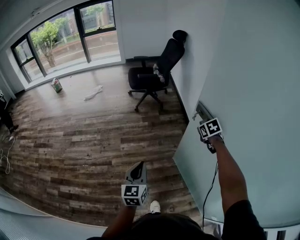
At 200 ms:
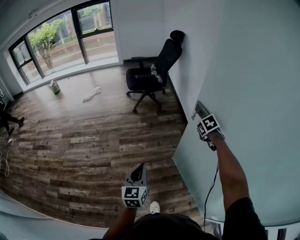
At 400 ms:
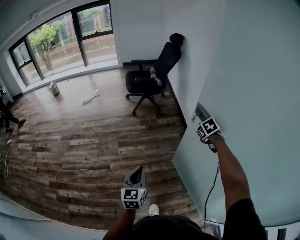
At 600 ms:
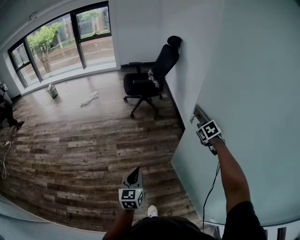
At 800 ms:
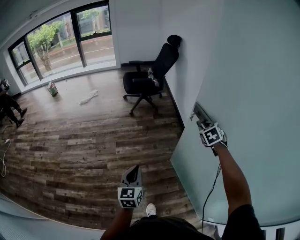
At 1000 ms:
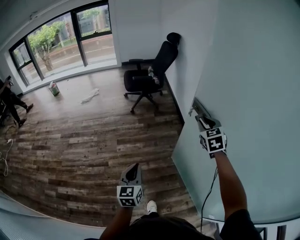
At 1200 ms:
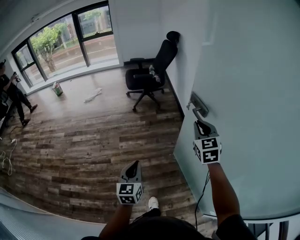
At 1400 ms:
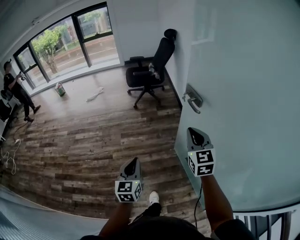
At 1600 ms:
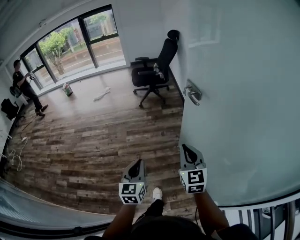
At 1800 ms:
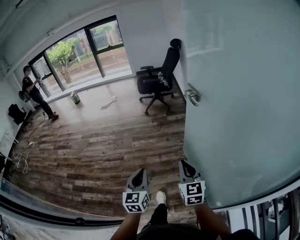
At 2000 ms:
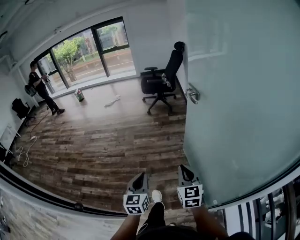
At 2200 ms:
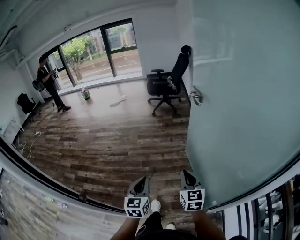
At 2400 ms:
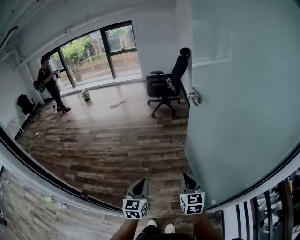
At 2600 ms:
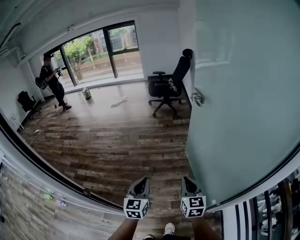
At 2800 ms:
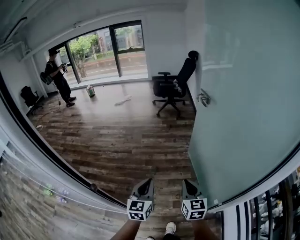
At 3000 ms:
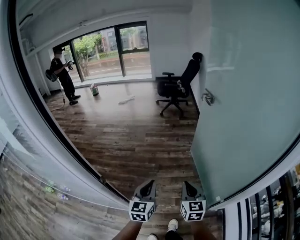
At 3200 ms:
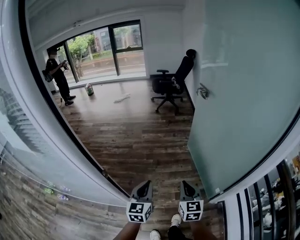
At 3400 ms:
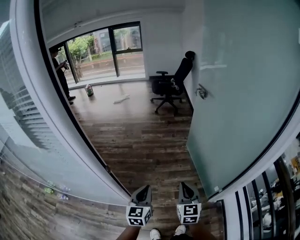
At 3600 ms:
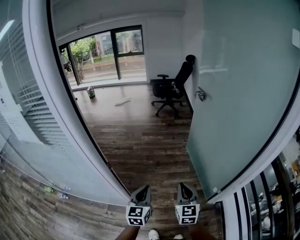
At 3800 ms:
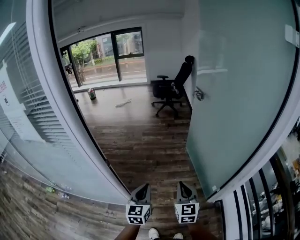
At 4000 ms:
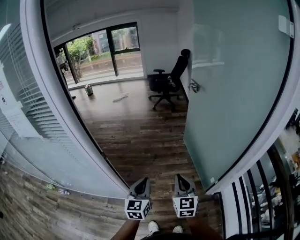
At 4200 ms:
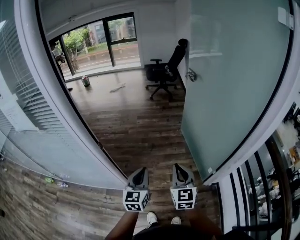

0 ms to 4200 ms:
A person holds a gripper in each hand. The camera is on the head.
0 ms to 1400 ms: The right gripper is displaced backward and upward by some 30 cm, angles its fingers upward, by roughly 50 degrees, and opens, then closes once more, while the left gripper shifts roughly 15 cm backward and to the right.
1400 ms to 2800 ms: Both grippers are carried backward, approximately 40 cm.
2800 ms to 4200 ms: The right gripper is displaced backward and upward by approximately 25 cm; the left gripper shifts about 25 cm backward.

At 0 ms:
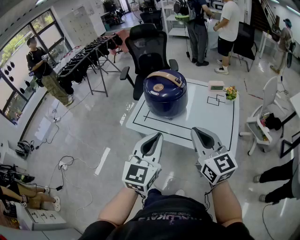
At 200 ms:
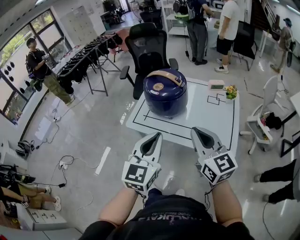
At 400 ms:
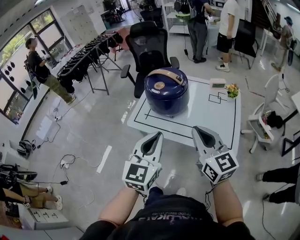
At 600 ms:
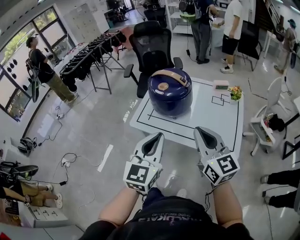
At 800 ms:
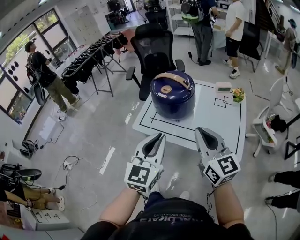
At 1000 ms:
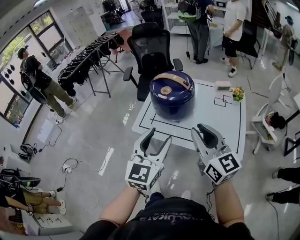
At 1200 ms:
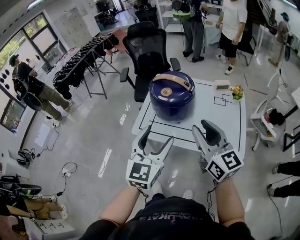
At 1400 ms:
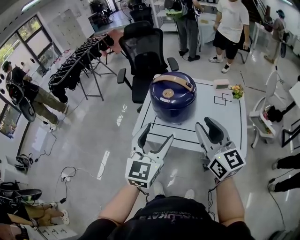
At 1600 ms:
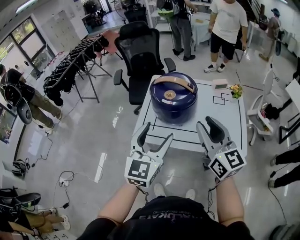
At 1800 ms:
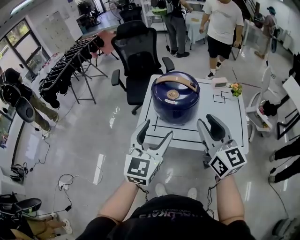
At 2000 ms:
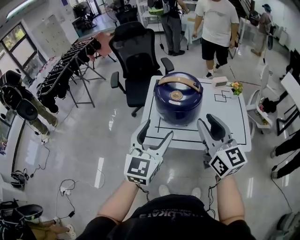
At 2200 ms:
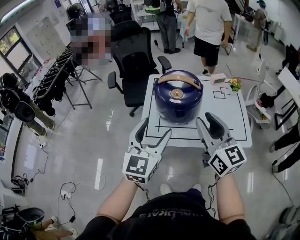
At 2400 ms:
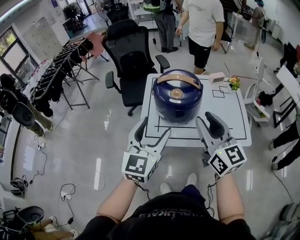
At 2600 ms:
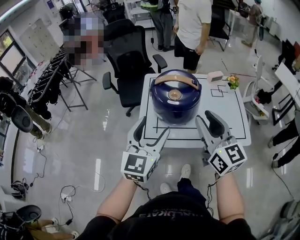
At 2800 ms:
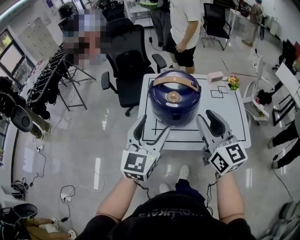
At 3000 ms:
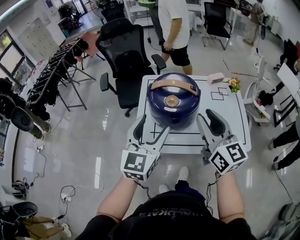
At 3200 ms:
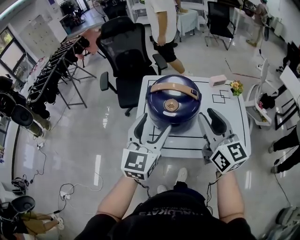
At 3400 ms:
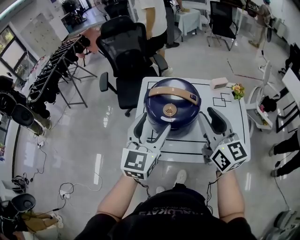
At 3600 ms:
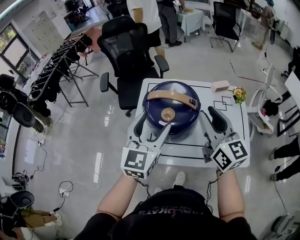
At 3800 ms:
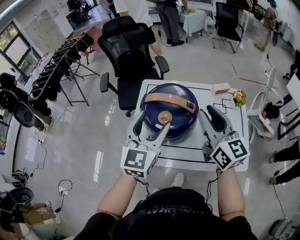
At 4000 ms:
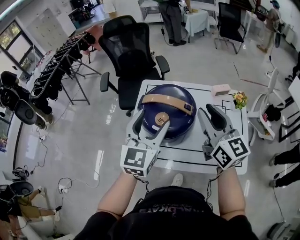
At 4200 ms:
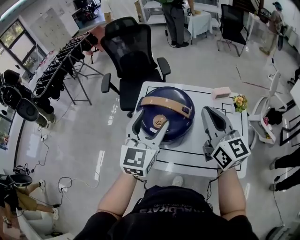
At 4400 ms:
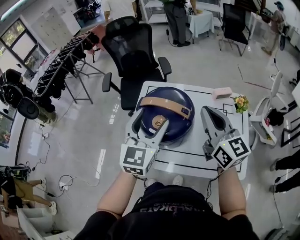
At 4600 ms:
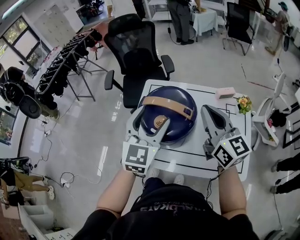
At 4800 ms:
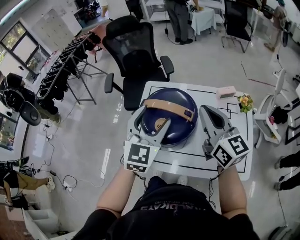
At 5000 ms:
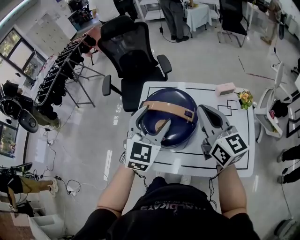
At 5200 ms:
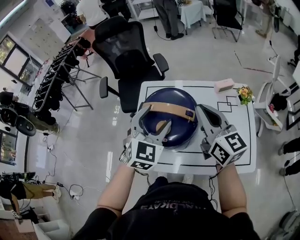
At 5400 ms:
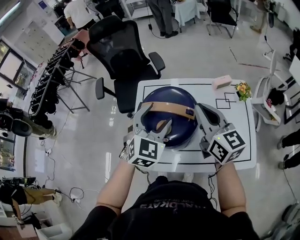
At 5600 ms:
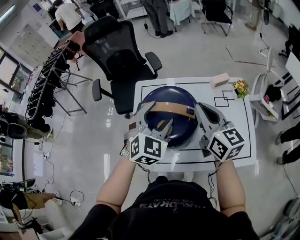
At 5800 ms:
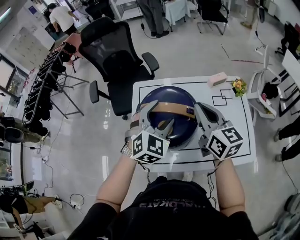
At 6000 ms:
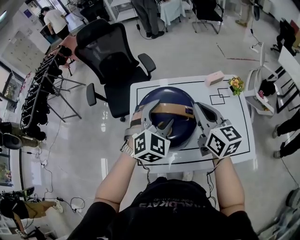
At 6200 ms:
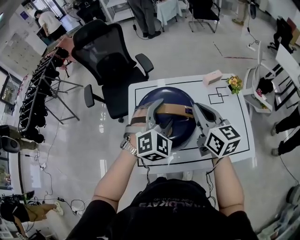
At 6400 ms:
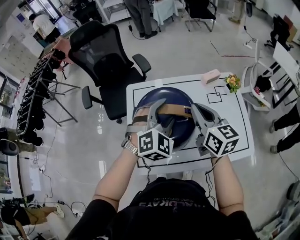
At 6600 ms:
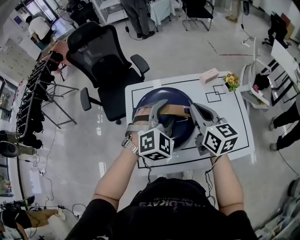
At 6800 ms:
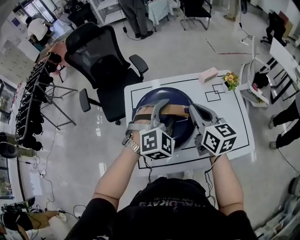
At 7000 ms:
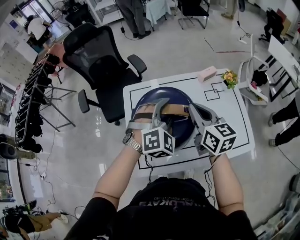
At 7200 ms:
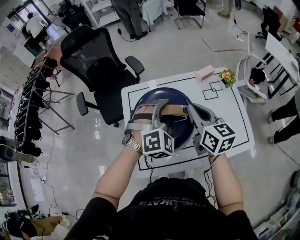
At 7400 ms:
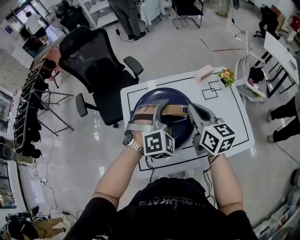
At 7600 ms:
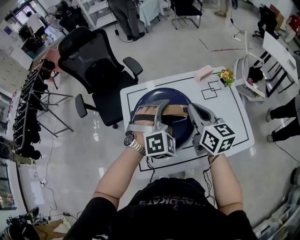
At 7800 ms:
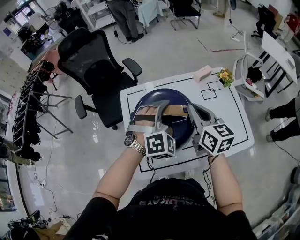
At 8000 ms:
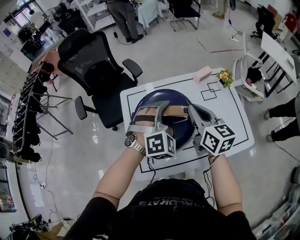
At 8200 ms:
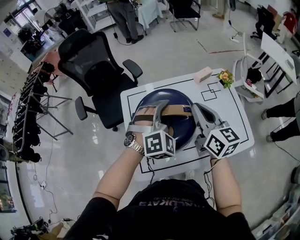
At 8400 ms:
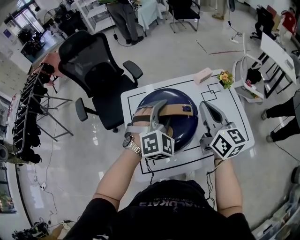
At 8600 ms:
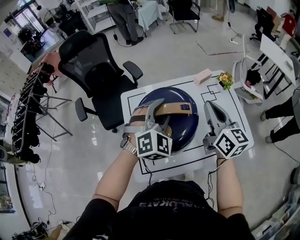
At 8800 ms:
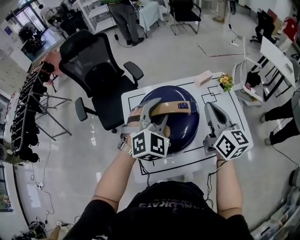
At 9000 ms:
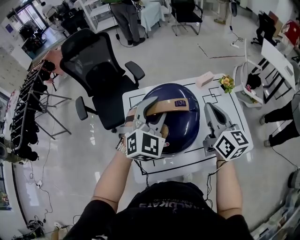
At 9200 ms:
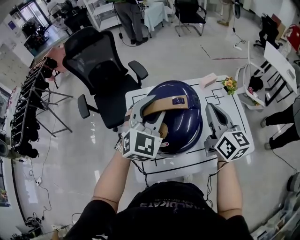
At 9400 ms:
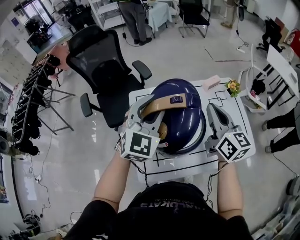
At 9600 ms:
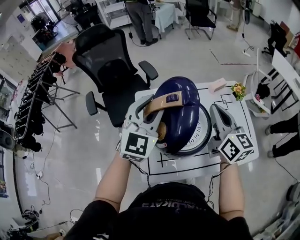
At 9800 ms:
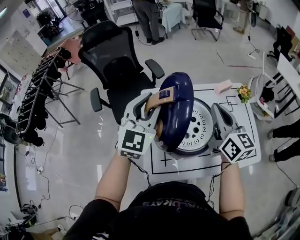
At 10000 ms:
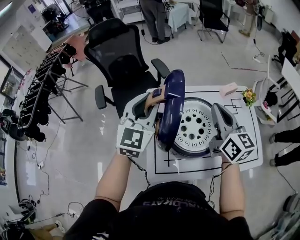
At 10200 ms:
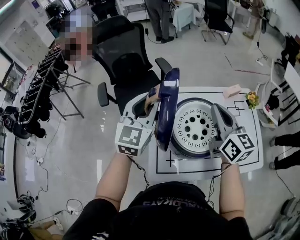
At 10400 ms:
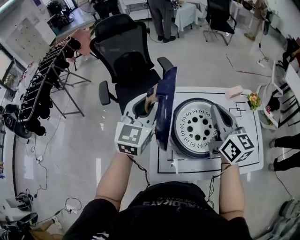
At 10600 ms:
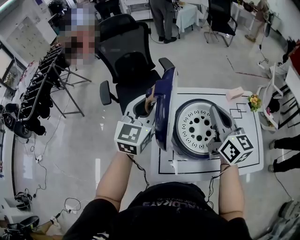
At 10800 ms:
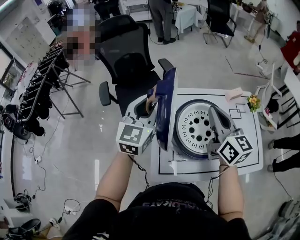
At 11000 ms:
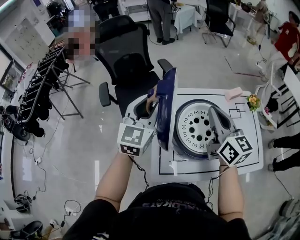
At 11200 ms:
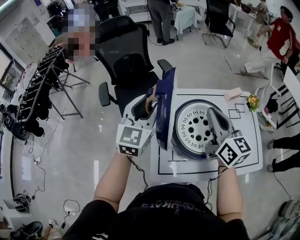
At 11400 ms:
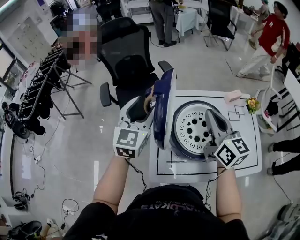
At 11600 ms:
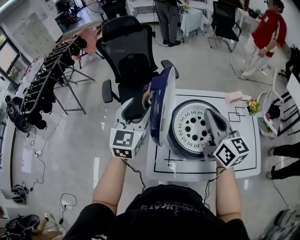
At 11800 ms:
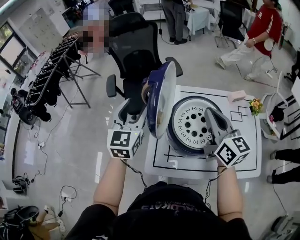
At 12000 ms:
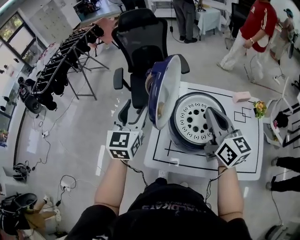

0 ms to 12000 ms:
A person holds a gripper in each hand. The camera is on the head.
0 ms to 1600 ms: The two grippers go some 15 cm forward and to the left. The right gripper opens up. The left gripper opens its fingers.
1600 ms to 3000 ms: The right gripper shifts some 10 cm forward; the left gripper heads forward and to the left, covering approximately 10 cm.
3000 ms to 4400 ms: The two grippers go approximately 15 cm forward and to the right. The right gripper closes its fingers.
4400 ms to 6000 ms: The right gripper is displaced downward by some 5 cm, while the left gripper shifts roughly 10 cm downward and forward, and rotates about 50 degrees.
6000 ms to 7600 ms: The left gripper turns by about 20 degrees, and closes up.
7600 ms to 9000 ms: The left gripper shifts roughly 10 cm upward and to the left, and rotates roughly 30 degrees; the right gripper ends up about 5 cm from where it was.
9000 ms to 10400 ms: Both grippers move to the left, about 15 cm. The left gripper turns by some 40 degrees.
10400 ms to 12000 ms: The left gripper moves backward and to the left, roughly 10 cm, rotates approximately 20 degrees, and opens its fingers; the right gripper goes roughly 5 cm backward.

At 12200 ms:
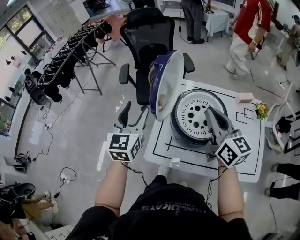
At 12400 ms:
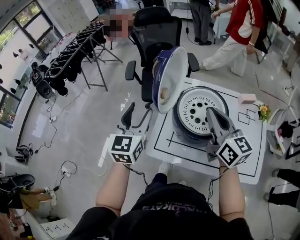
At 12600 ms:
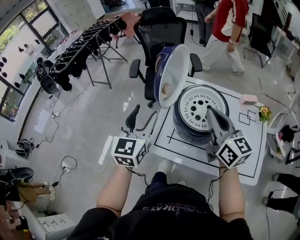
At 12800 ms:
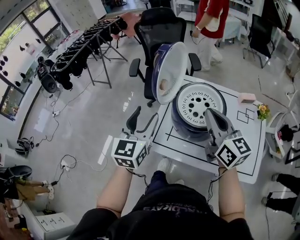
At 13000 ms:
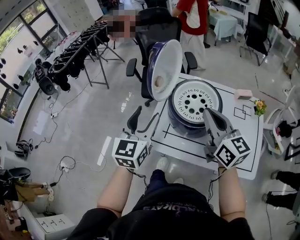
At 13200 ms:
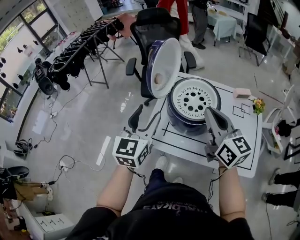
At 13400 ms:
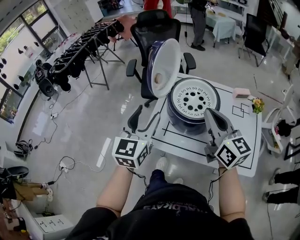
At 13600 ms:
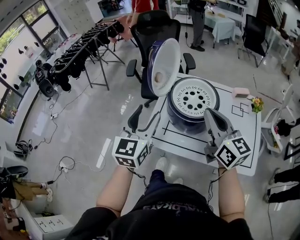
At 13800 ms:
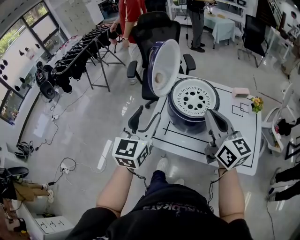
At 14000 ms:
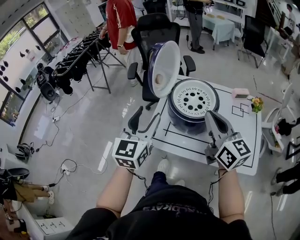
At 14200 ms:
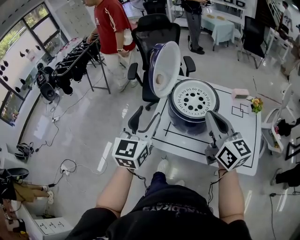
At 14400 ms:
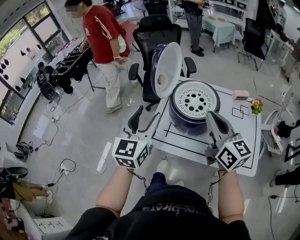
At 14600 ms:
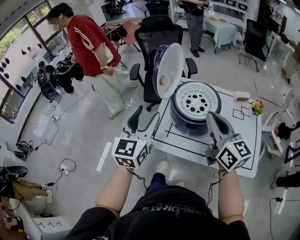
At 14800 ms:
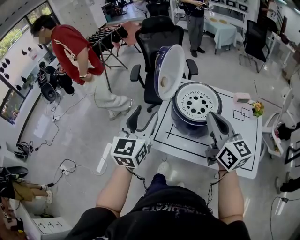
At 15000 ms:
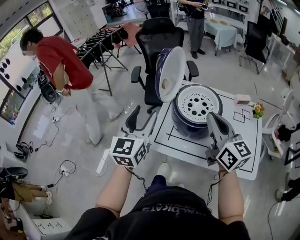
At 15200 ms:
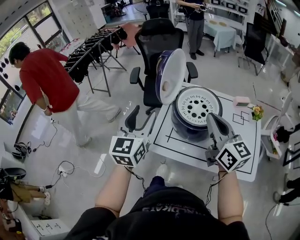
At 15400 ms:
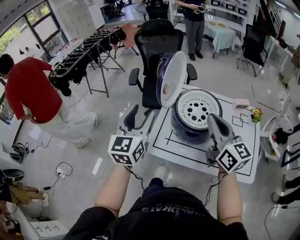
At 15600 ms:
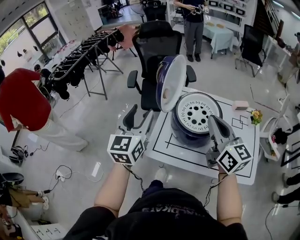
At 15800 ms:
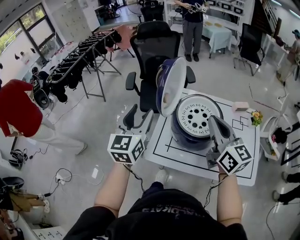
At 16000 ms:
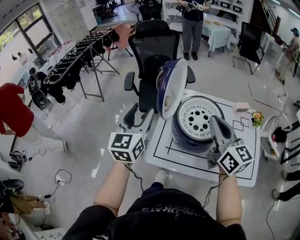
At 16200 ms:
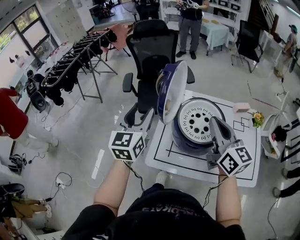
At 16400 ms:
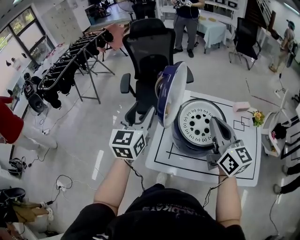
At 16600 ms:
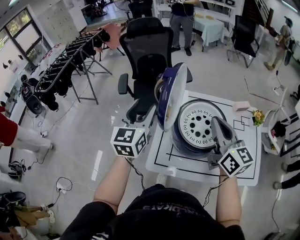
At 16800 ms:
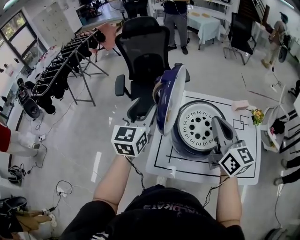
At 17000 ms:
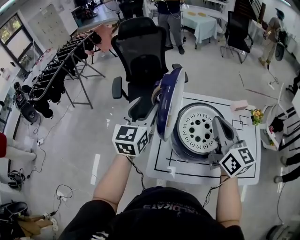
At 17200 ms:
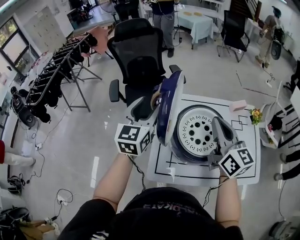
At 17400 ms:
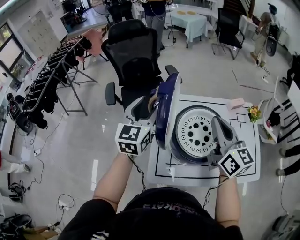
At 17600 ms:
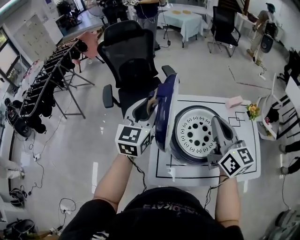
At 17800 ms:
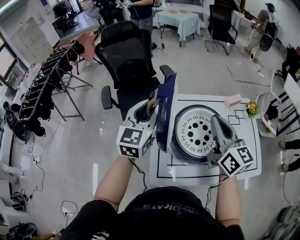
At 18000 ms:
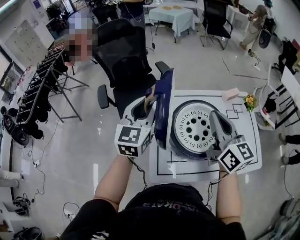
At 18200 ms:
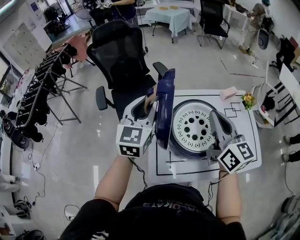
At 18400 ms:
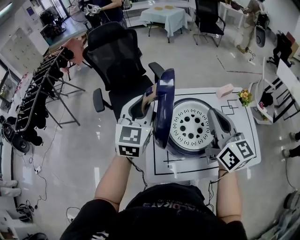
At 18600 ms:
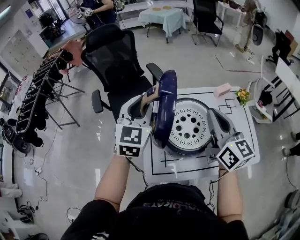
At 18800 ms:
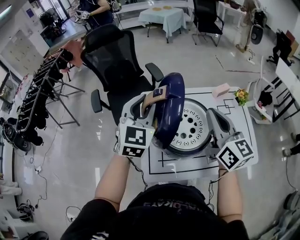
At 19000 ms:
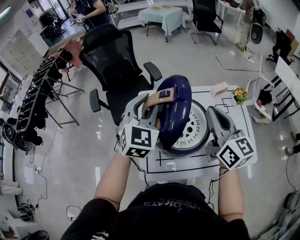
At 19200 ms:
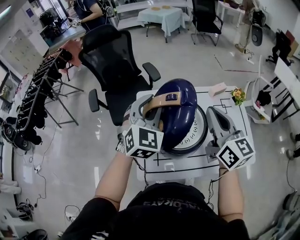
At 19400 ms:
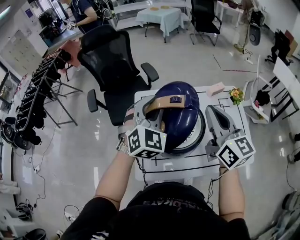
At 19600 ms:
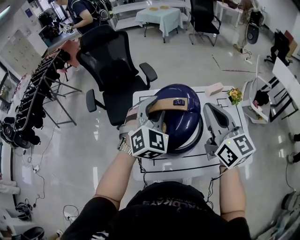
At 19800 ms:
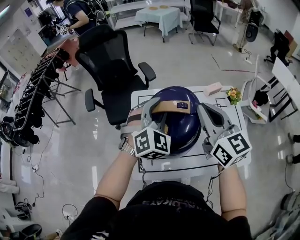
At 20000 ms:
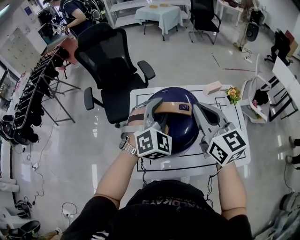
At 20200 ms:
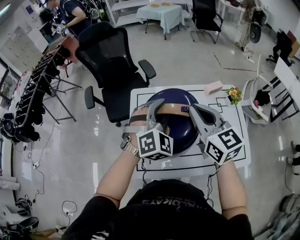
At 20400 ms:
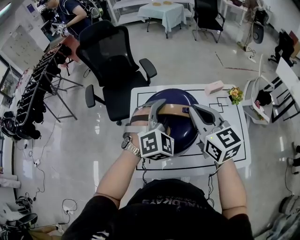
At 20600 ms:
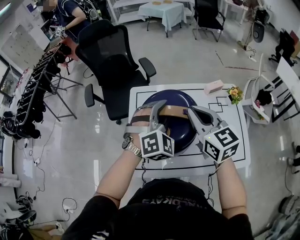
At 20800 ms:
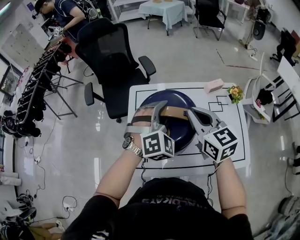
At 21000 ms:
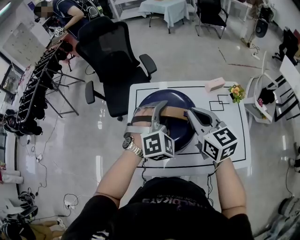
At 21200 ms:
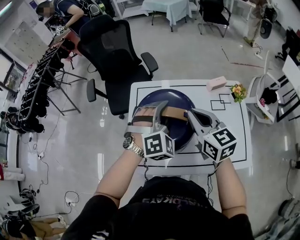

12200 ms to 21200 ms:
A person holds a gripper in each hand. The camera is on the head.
12200 ms to 13800 ms: Both grippers move backward, some 15 cm.
13800 ms to 15200 ms: The left gripper changes place by approximately 5 cm.
15200 ms to 16600 ms: The left gripper heads forward, covering roughly 20 cm; the right gripper is displaced forward by approximately 10 cm.
16600 ms to 18200 ms: The left gripper heads forward and to the right, covering some 10 cm, and closes.
18200 ms to 19800 ms: The left gripper travels to the right by about 15 cm, and rotates around the line of its fingers by about 40 degrees, clockwise from behind. Meanwhile the right gripper travels to the right by roughly 5 cm.
19800 ms to 21200 ms: The right gripper heads downward, covering about 10 cm, while the left gripper shifts approximately 10 cm downward and to the right.
